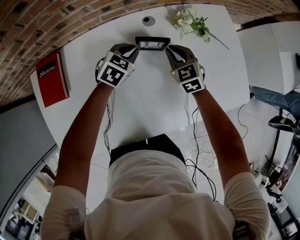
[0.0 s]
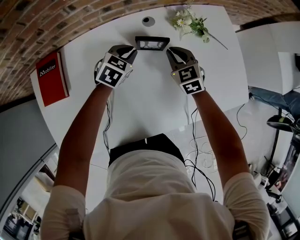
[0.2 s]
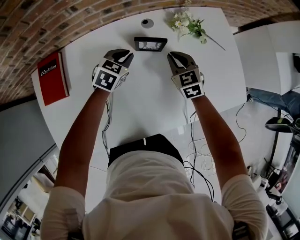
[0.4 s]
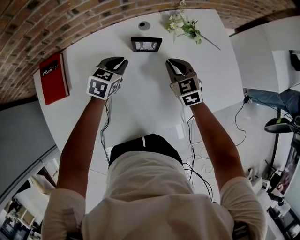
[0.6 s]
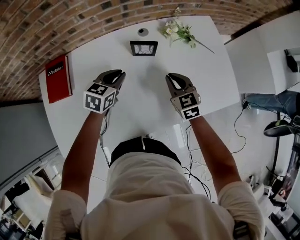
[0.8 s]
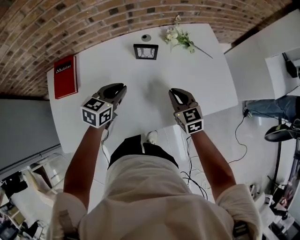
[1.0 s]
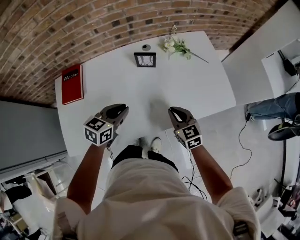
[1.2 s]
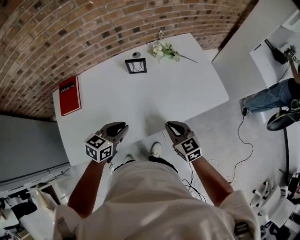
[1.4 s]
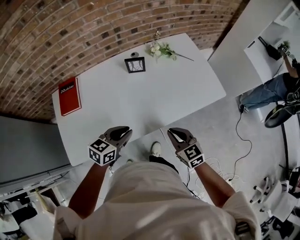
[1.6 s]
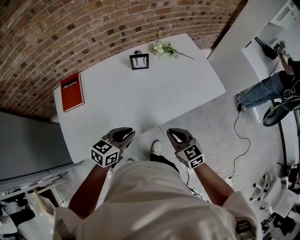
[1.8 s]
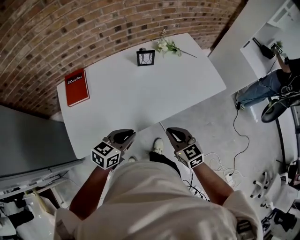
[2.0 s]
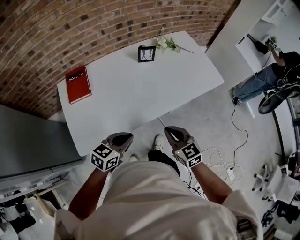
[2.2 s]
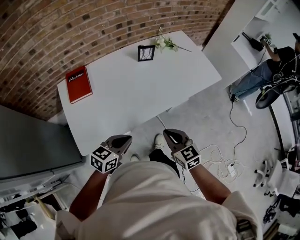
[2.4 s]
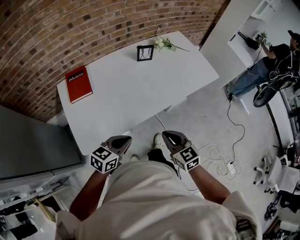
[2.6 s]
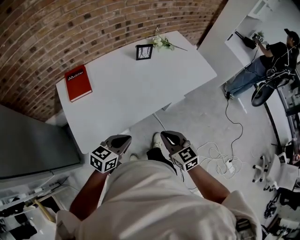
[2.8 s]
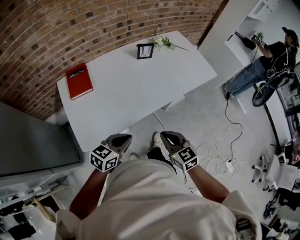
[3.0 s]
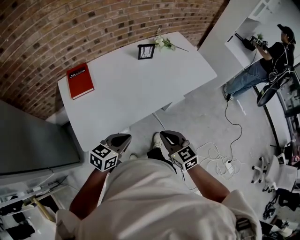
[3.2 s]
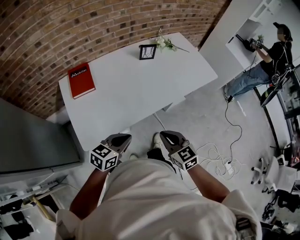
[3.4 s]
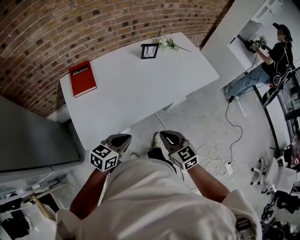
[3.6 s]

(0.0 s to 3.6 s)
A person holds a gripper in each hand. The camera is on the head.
0.0 s - 1.8 s: Both grippers are carried backward, approximately 40 cm. The left gripper turns by approximately 30 degrees.
1.8 s - 3.6 s: The grippers both shift backward and to the left by roughly 25 cm.

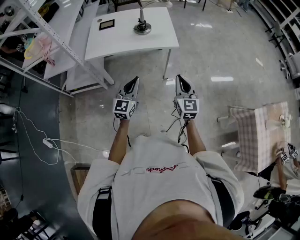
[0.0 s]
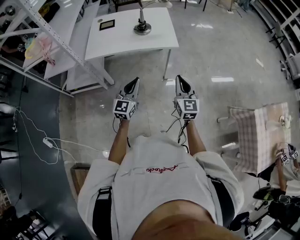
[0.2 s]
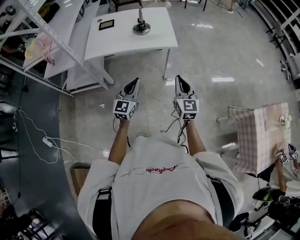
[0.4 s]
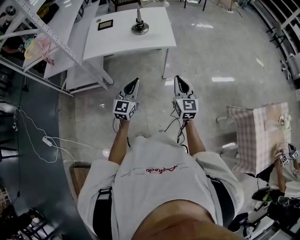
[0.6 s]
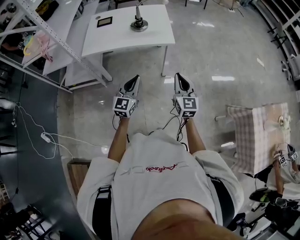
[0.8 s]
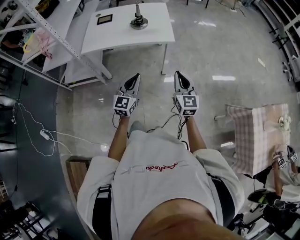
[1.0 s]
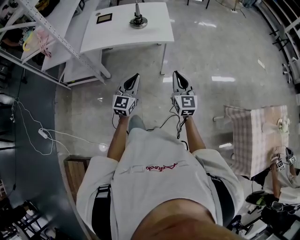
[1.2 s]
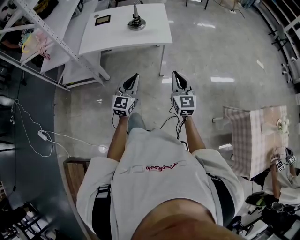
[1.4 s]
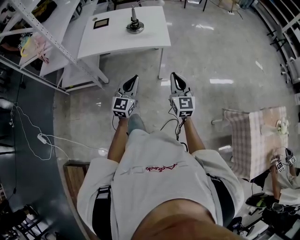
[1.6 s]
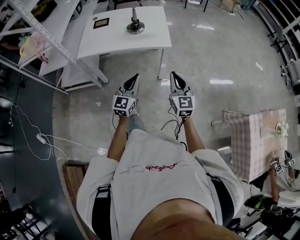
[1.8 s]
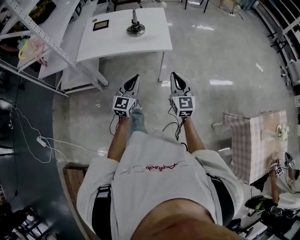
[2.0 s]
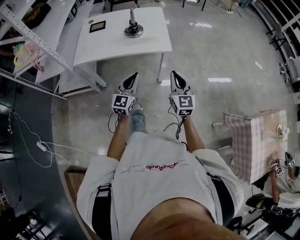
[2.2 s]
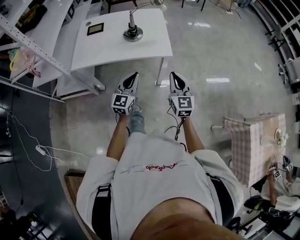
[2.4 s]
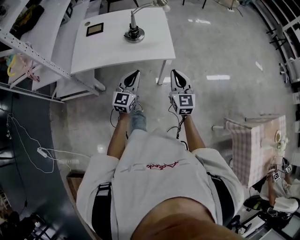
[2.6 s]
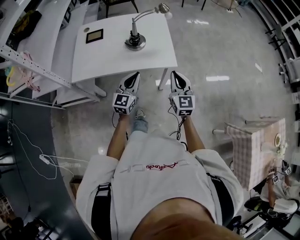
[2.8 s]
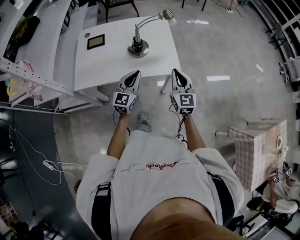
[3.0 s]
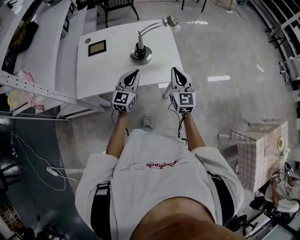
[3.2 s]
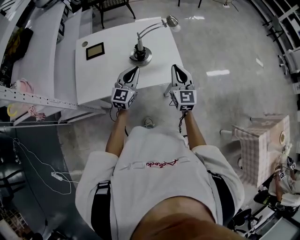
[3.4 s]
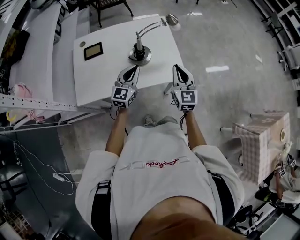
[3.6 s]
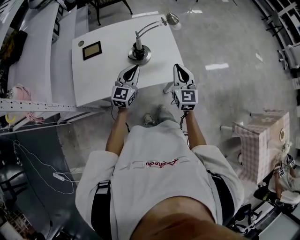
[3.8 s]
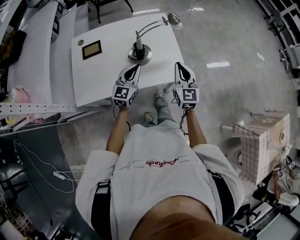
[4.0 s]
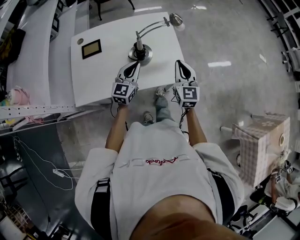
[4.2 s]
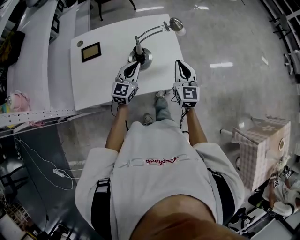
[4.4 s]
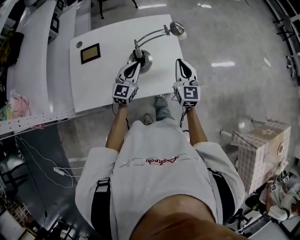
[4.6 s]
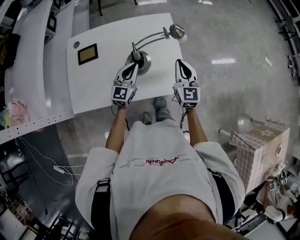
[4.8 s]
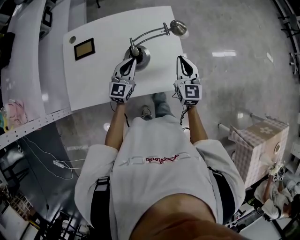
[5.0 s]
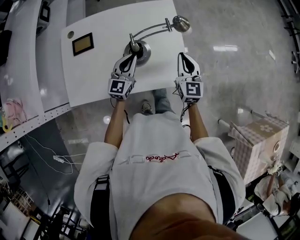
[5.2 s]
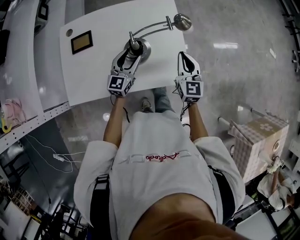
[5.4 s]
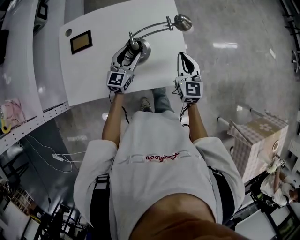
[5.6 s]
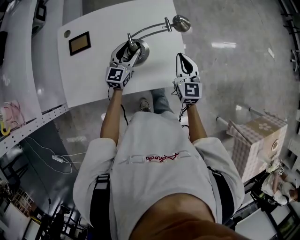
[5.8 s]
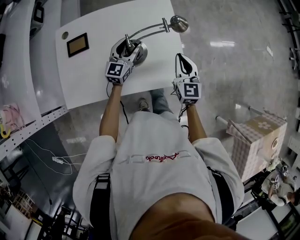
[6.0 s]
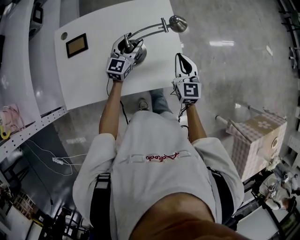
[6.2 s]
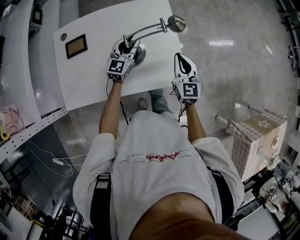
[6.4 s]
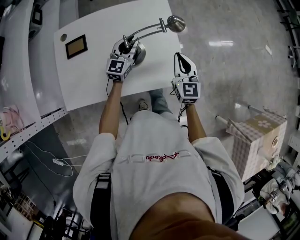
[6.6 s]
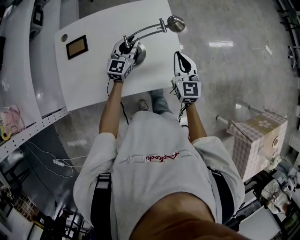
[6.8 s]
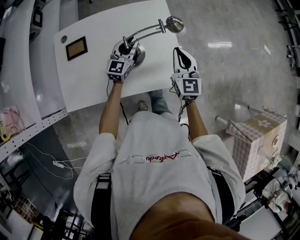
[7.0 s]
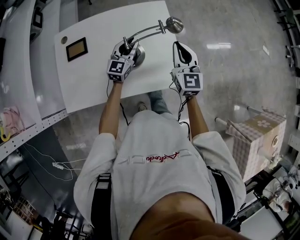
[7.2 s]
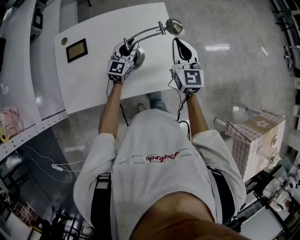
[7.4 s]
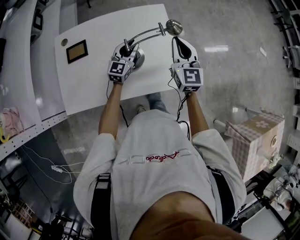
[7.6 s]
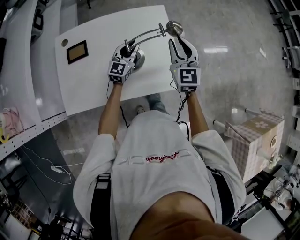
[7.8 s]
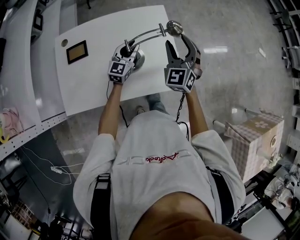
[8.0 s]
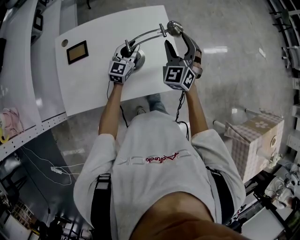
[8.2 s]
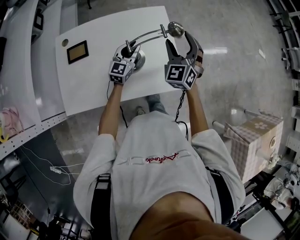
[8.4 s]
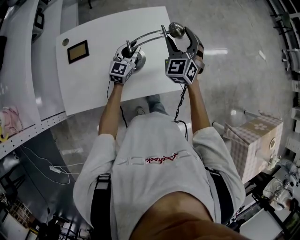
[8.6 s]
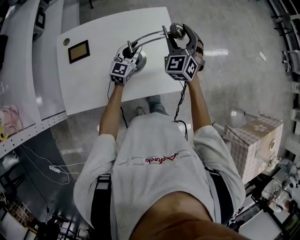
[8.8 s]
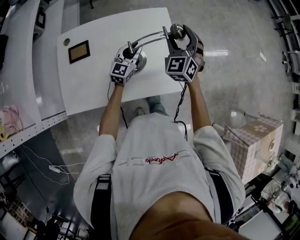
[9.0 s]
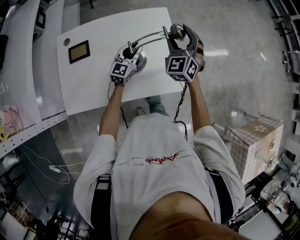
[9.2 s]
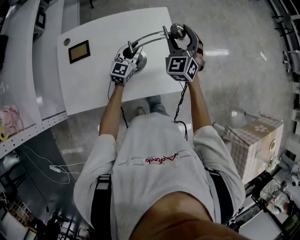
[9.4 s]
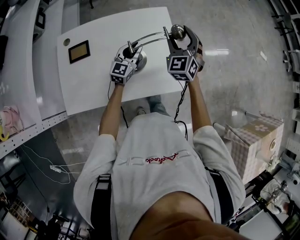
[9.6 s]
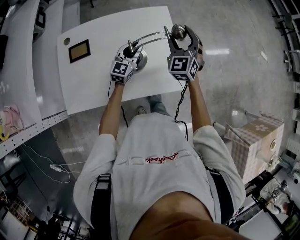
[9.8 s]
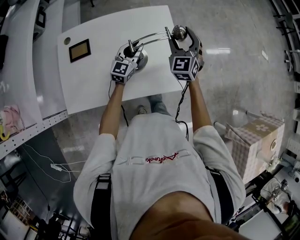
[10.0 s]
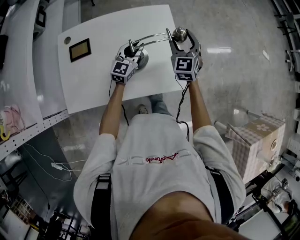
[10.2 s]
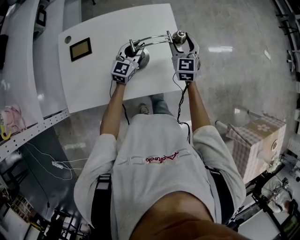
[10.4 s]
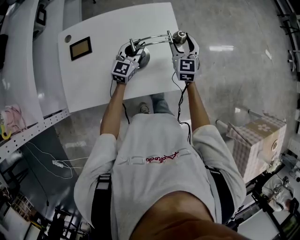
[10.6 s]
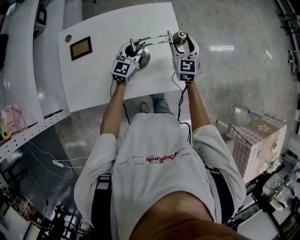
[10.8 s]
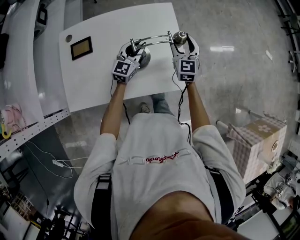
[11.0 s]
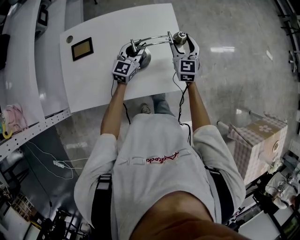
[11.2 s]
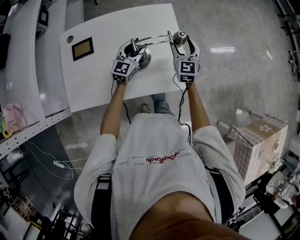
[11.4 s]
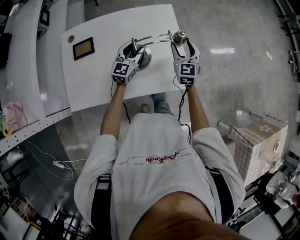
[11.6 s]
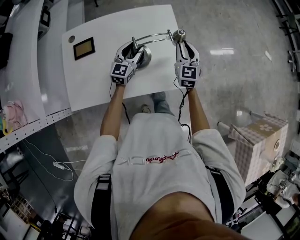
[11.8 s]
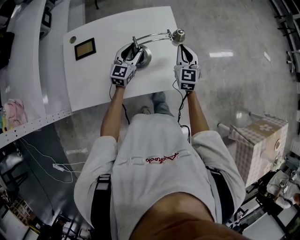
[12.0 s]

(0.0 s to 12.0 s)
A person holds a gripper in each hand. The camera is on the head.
0.0 s - 1.6 s: The two grippers go roughly 5 cm to the right.
1.6 s - 3.0 s: Both grippers move forward, approximately 30 cm.
3.0 s - 4.4 s: The two grippers go about 15 cm forward.
4.4 s - 6.0 s: The left gripper travels forward by some 10 cm, and opens up; the right gripper heads forward and downward, covering some 10 cm.
6.0 s - 7.6 s: The right gripper moves upward and forward, about 10 cm. Meanwhile the left gripper closes up.
7.6 s - 9.0 s: The right gripper moves approximately 5 cm, changes its angle by approximately 40 degrees, and opens up.
9.0 s - 10.4 s: The right gripper is displaced downward by approximately 10 cm, and rotates about 30 degrees.
10.4 s - 12.0 s: The right gripper travels backward by some 5 cm, and closes up. Meanwhile the left gripper opens up.

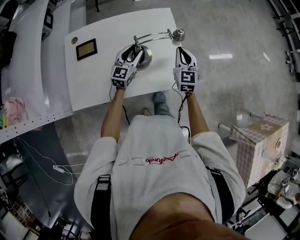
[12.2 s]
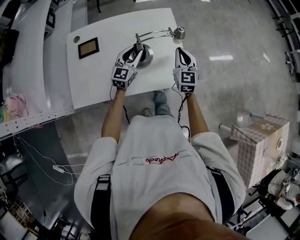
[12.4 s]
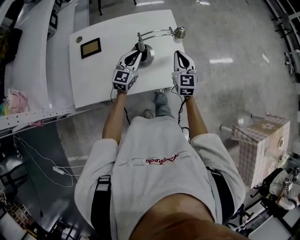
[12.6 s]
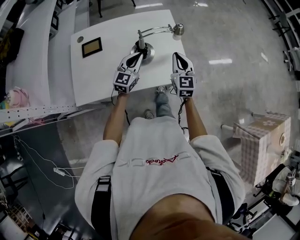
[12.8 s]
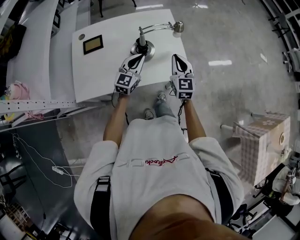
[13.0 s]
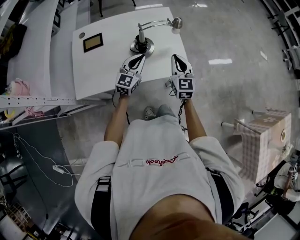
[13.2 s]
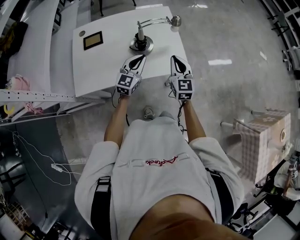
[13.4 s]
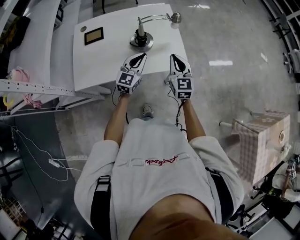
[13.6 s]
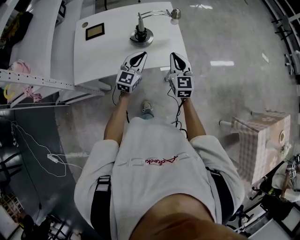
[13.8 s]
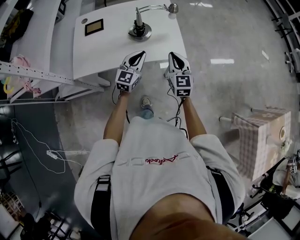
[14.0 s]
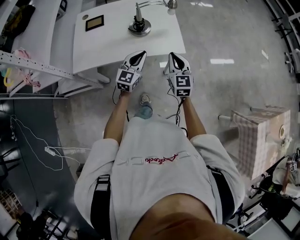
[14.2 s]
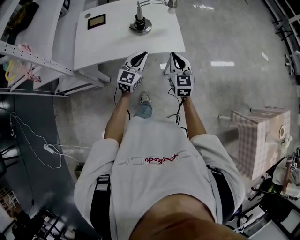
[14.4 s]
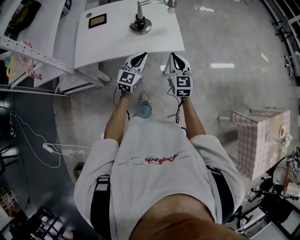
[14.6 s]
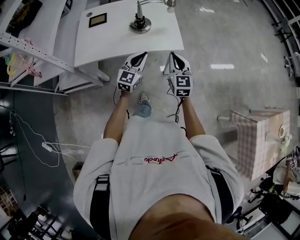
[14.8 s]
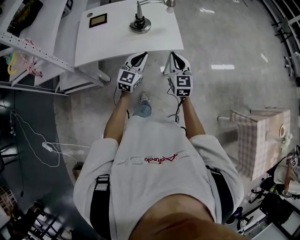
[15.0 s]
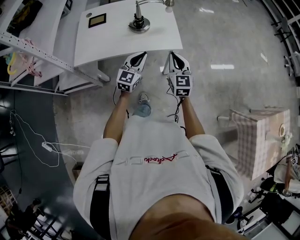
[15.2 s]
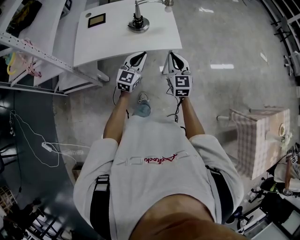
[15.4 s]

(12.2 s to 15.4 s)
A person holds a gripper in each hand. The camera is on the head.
12.2 s - 13.8 s: The grippers both shift backward by about 20 cm. The left gripper closes its fingers.
13.8 s - 15.4 s: The grippers both shift backward by some 10 cm.

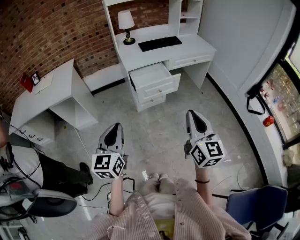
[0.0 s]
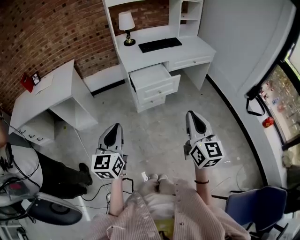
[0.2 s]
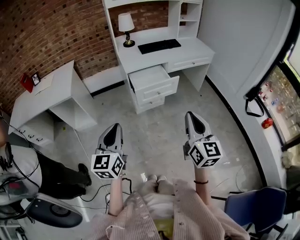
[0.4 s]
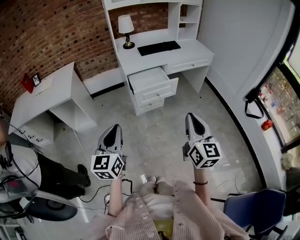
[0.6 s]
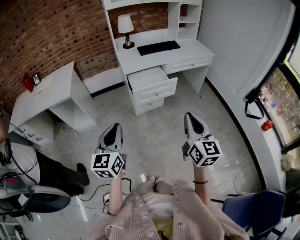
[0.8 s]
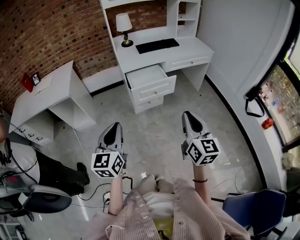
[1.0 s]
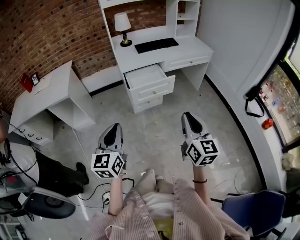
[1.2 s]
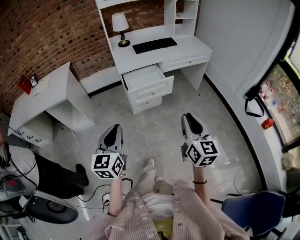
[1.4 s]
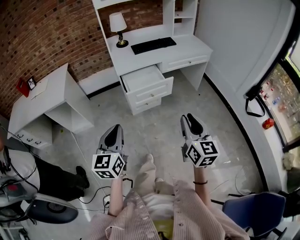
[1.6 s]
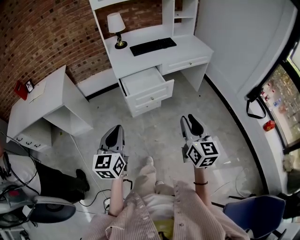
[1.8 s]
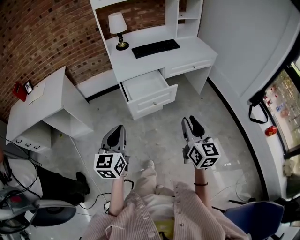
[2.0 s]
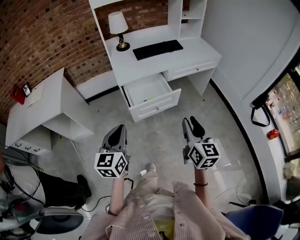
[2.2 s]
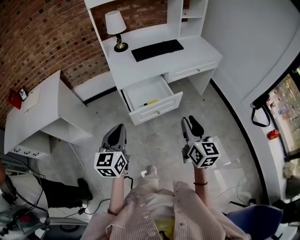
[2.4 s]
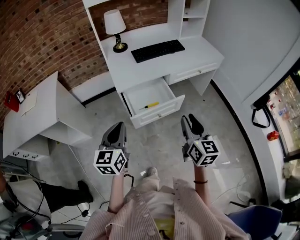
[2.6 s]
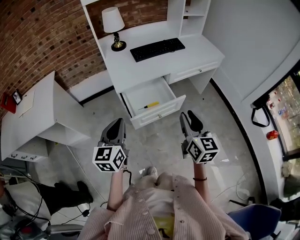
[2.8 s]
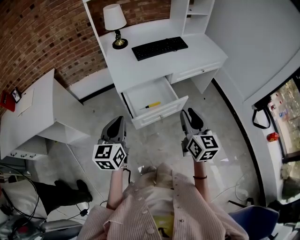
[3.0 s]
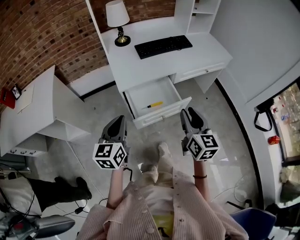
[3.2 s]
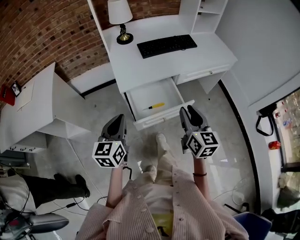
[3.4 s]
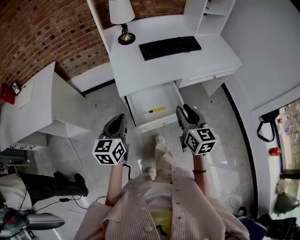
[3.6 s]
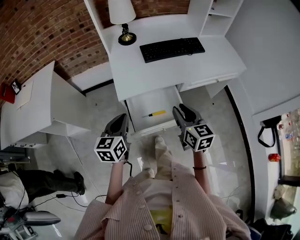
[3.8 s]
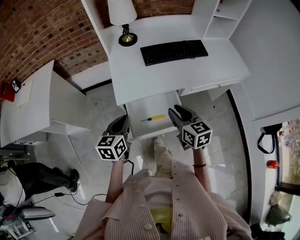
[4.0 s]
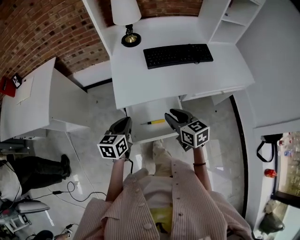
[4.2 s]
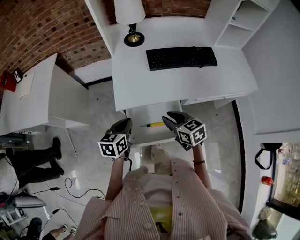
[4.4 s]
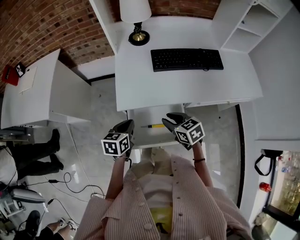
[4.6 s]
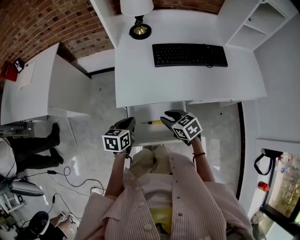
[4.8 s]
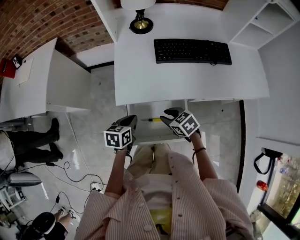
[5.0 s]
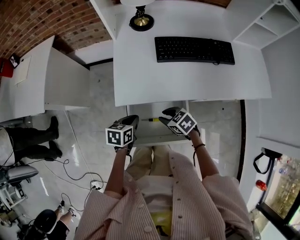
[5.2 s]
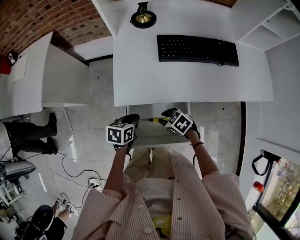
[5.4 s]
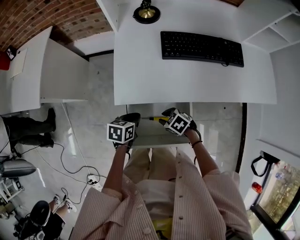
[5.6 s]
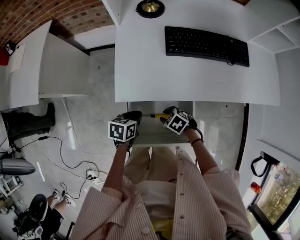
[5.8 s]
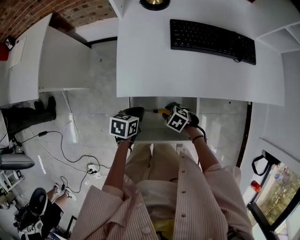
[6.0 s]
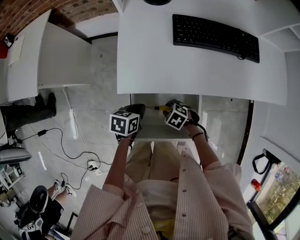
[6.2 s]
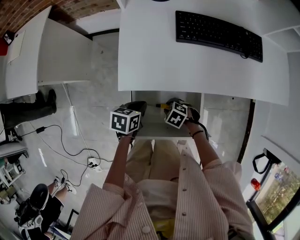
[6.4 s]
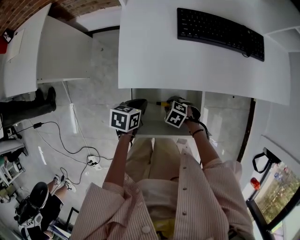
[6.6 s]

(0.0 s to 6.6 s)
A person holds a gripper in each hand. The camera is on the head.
0.0 s - 1.6 s: The right gripper moves to the right and downward, some 10 cm, while the left gripper goes roughly 5 cm to the right.
1.6 s - 3.2 s: The grippers both shift forward by roughly 30 cm.
3.2 s - 5.0 s: The right gripper shifts by about 35 cm, and points its fingers about 40 degrees further downward. Meanwhile the left gripper goes approximately 20 cm downward, and angles its fingers downward, by some 30 degrees.
5.0 s - 6.6 s: The right gripper is displaced downward by about 15 cm, and turns by approximately 40 degrees; the left gripper moves downward, approximately 10 cm.
